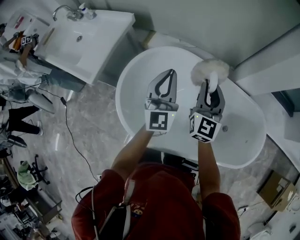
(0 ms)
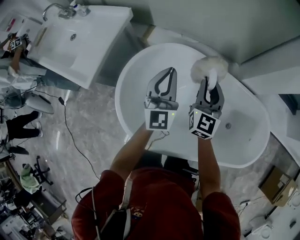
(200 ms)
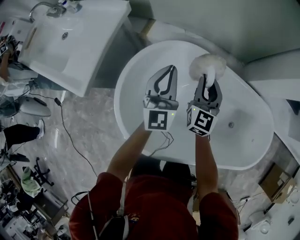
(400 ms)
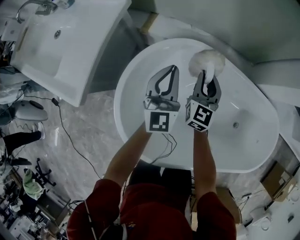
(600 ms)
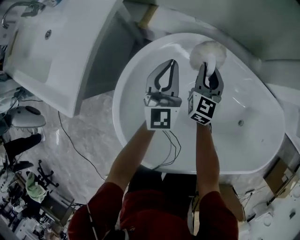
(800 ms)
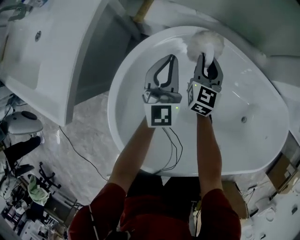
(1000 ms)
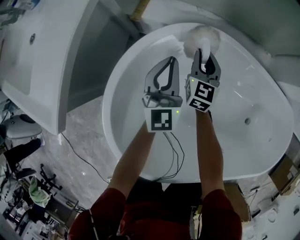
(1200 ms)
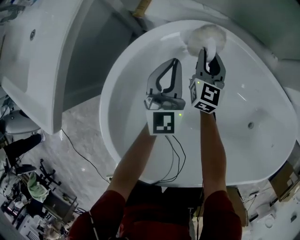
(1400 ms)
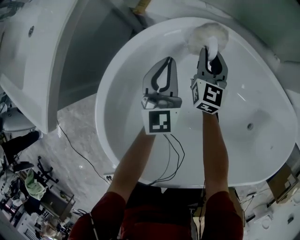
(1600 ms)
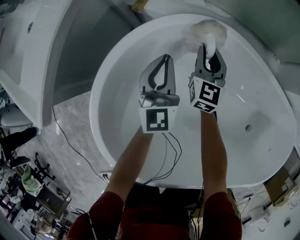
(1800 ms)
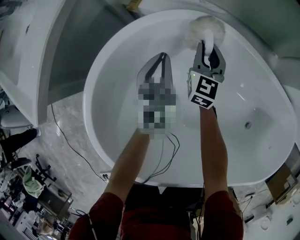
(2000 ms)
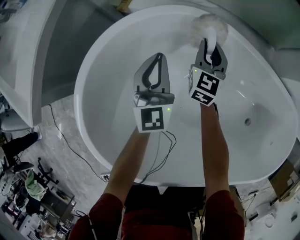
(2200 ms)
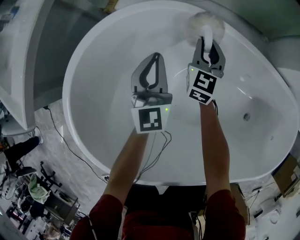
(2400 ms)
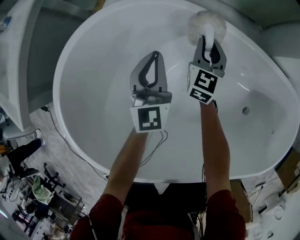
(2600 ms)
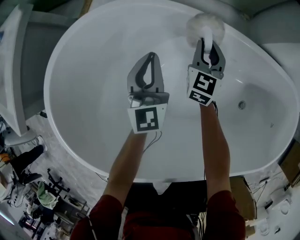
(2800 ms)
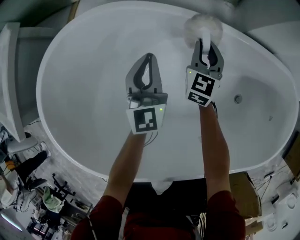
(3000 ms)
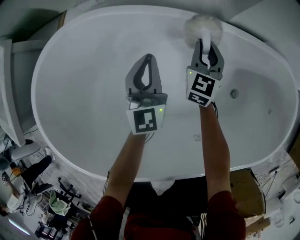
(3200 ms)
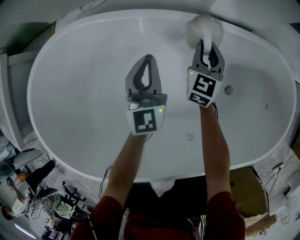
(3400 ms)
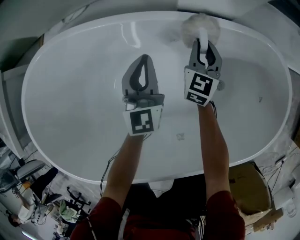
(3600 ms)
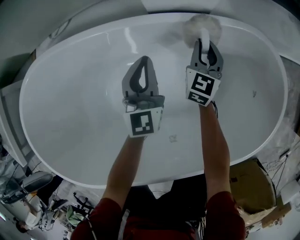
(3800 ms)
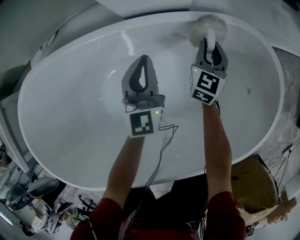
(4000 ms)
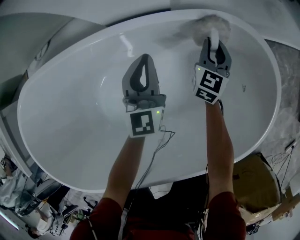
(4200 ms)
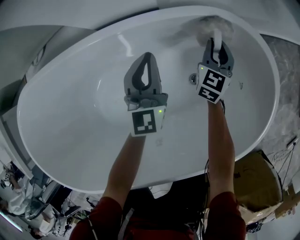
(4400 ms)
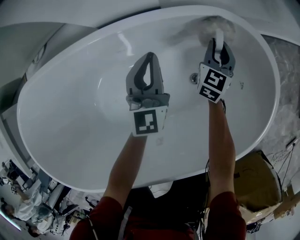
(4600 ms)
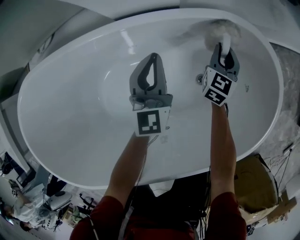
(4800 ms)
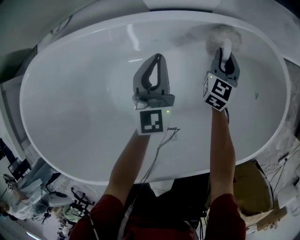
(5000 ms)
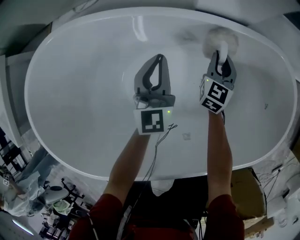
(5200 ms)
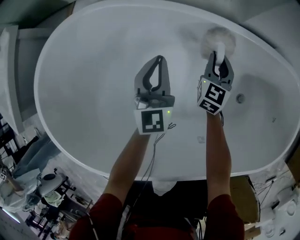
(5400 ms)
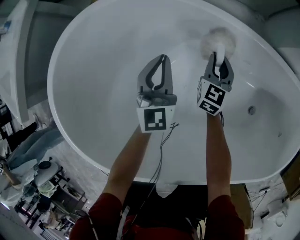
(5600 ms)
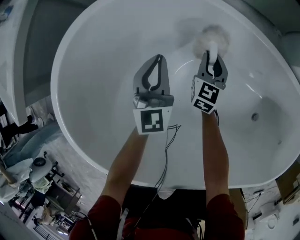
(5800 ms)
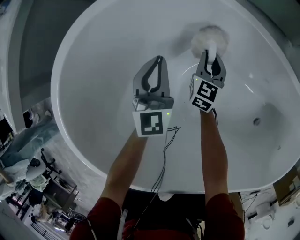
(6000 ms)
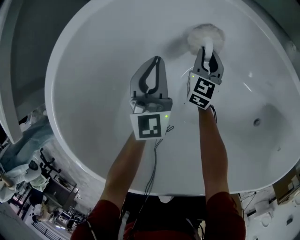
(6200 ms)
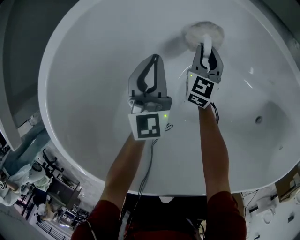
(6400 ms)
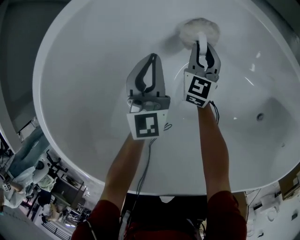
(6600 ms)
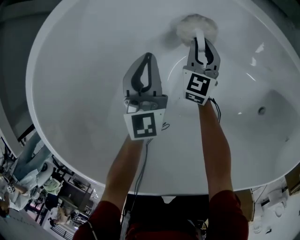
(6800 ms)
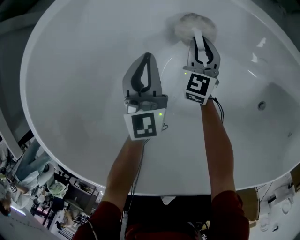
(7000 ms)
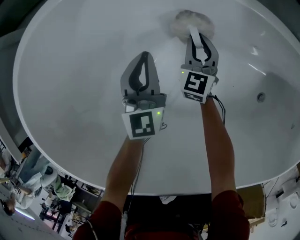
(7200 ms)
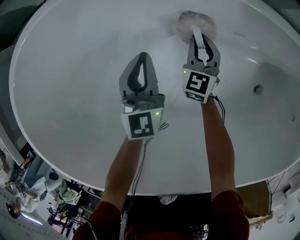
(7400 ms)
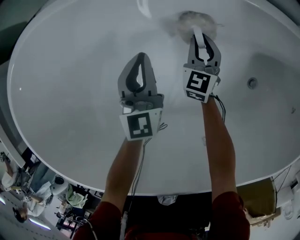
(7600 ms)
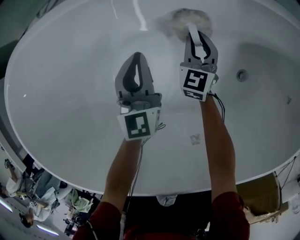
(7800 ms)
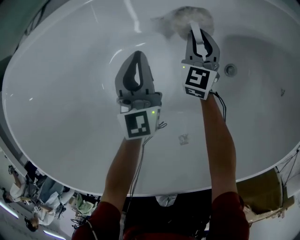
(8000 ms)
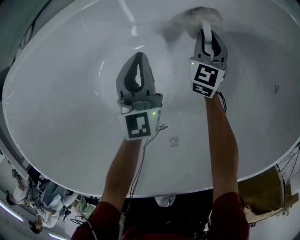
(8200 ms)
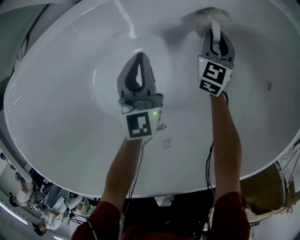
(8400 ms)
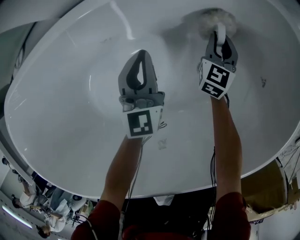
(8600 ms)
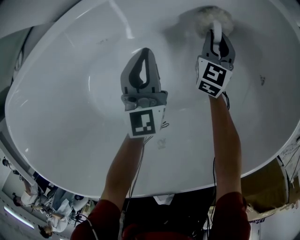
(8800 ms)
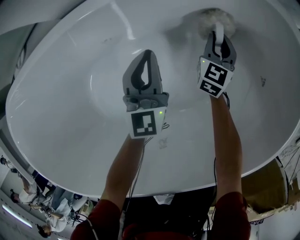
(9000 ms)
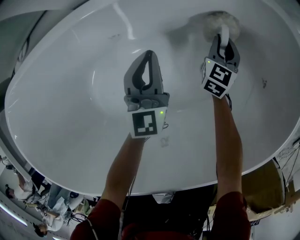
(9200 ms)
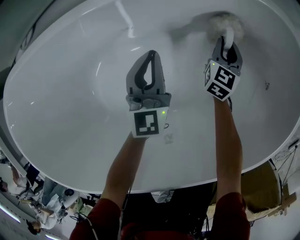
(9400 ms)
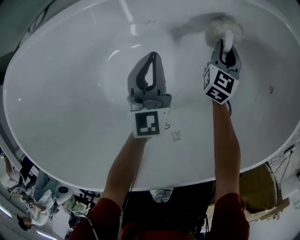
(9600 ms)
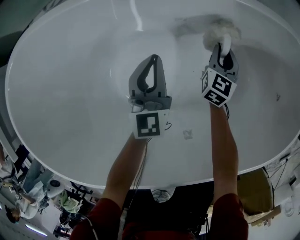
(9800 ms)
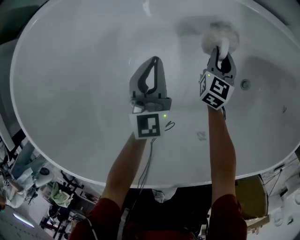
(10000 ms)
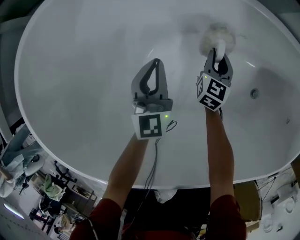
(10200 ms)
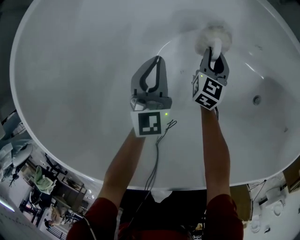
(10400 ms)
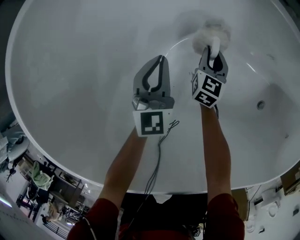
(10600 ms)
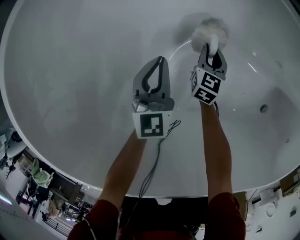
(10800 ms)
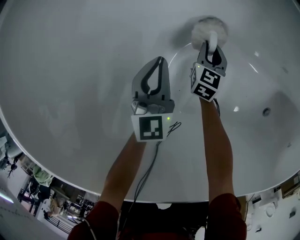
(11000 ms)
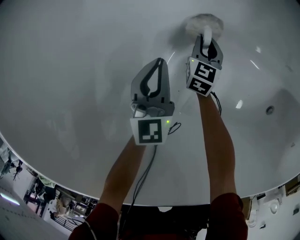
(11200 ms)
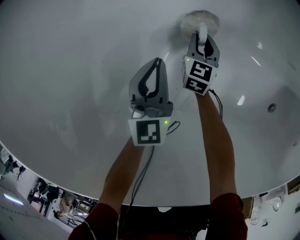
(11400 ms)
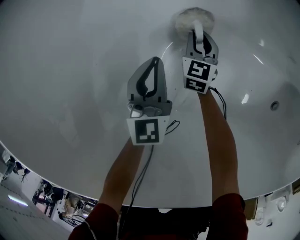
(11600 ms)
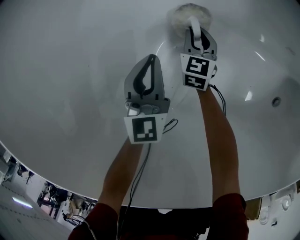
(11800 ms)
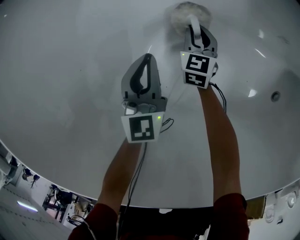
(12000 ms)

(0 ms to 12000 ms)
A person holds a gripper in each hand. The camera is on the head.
0 ms - 1600 ms: Both grippers move downward and forward, about 50 cm.
1600 ms - 3000 ms: The two grippers go approximately 30 cm to the right.
3000 ms - 4400 ms: The two grippers travel together, to the right, approximately 50 cm. The right gripper turns by roughly 20 degrees. Meanwhile the left gripper rotates some 20 degrees.
4400 ms - 6000 ms: Both grippers are carried about 70 cm. The left gripper turns by approximately 30 degrees, while the right gripper rotates some 30 degrees.
6000 ms - 7600 ms: The left gripper moves left and right over about 25 cm, changing direction 2 times. The right gripper swings left and right, approximately 30 cm each way, with 2 reversals.
7600 ms - 9000 ms: Both grippers move to the right, about 35 cm. The right gripper rotates some 30 degrees.
9000 ms - 10400 ms: The pair of grippers is taken approximately 60 cm. The right gripper changes its angle by about 30 degrees; the left gripper turns by about 30 degrees.
10400 ms - 12000 ms: The grippers both shift downward by roughly 10 cm.

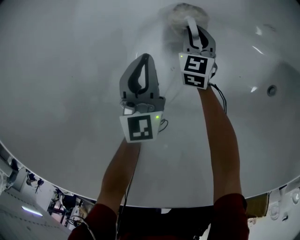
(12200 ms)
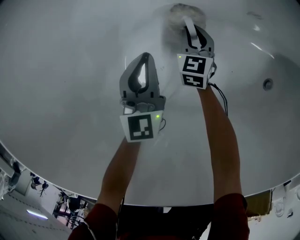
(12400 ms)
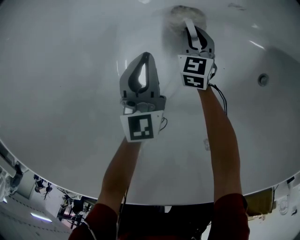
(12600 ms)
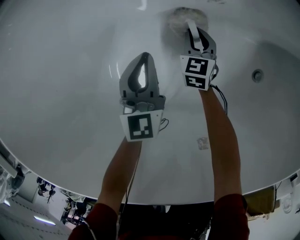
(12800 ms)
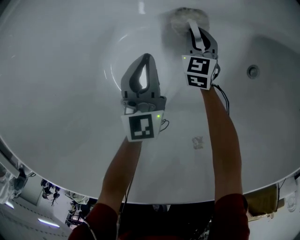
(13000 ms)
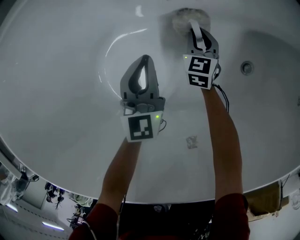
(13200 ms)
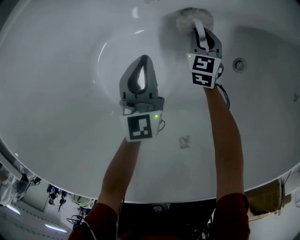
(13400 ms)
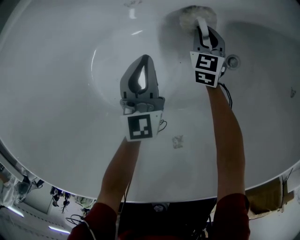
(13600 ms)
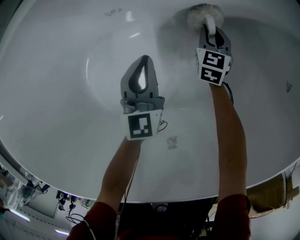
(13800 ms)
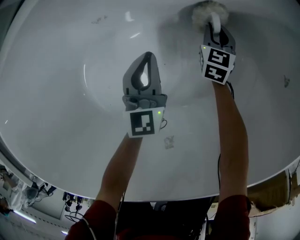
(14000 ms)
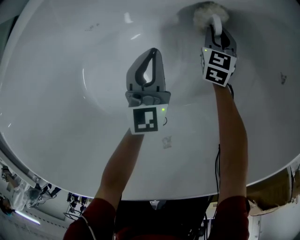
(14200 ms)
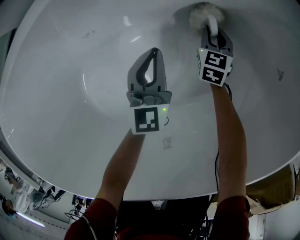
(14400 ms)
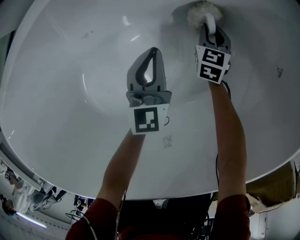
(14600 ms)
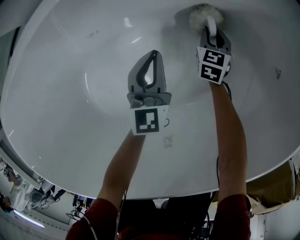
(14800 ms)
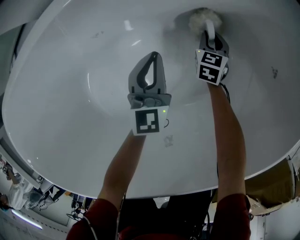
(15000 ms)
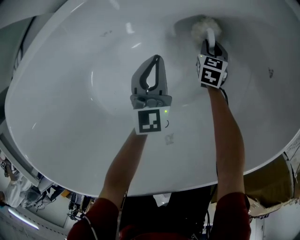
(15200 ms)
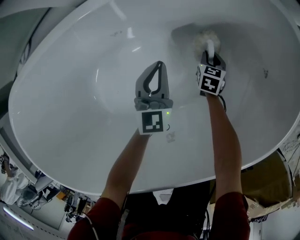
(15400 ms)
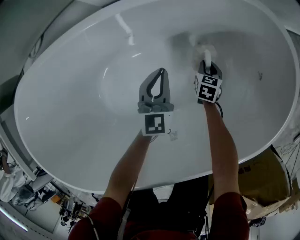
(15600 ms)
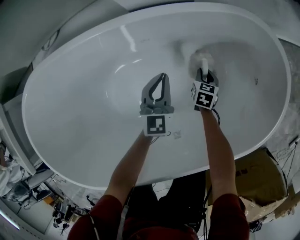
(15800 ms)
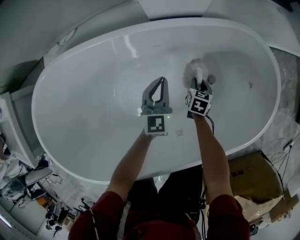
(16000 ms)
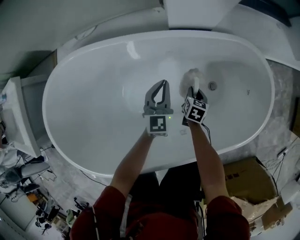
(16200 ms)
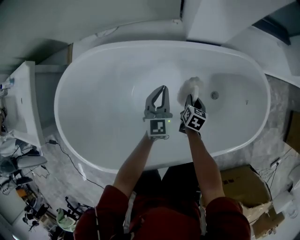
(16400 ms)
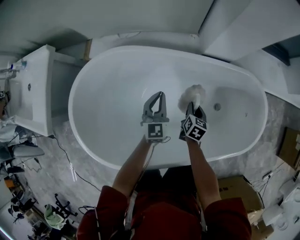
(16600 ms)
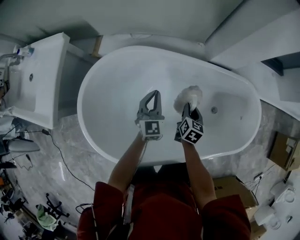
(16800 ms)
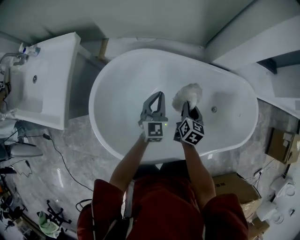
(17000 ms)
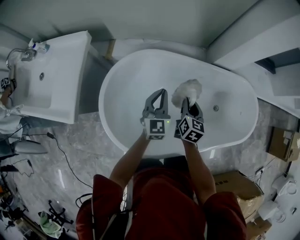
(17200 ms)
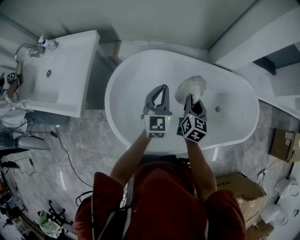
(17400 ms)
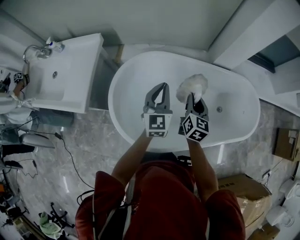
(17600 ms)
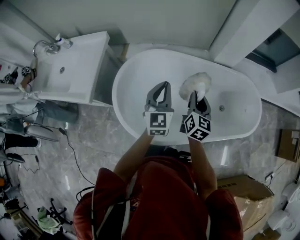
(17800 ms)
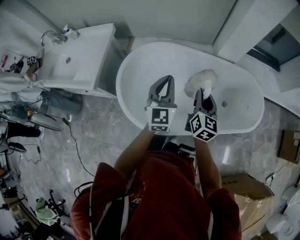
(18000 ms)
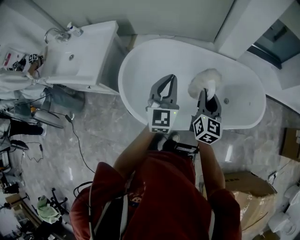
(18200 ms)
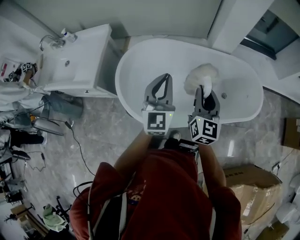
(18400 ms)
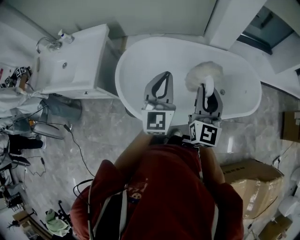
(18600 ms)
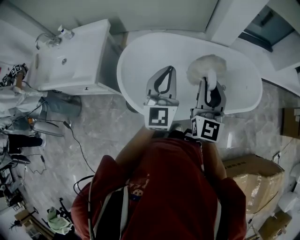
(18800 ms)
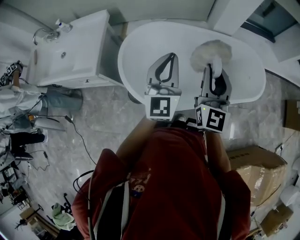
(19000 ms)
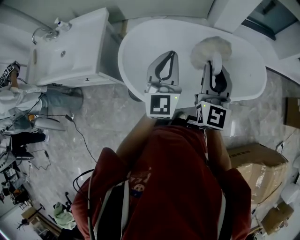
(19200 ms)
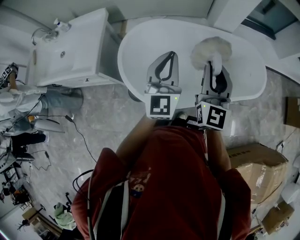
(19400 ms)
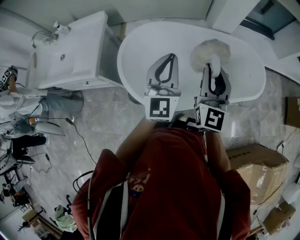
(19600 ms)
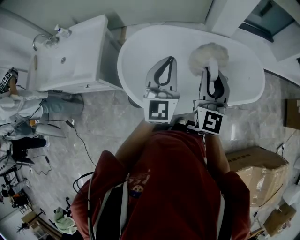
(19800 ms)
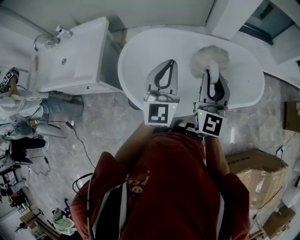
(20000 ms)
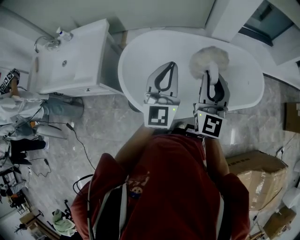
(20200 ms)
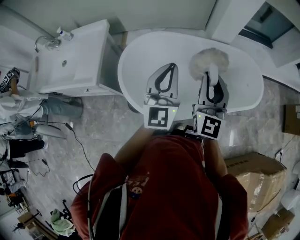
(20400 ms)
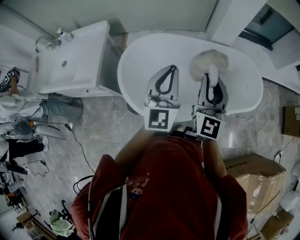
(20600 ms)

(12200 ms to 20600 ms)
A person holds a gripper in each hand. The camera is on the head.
12200 ms - 13600 ms: The right gripper moves about 20 cm to the left and comes back. The left gripper reaches some 20 cm to the left, then returns.
13600 ms - 15000 ms: The left gripper is displaced to the right and forward by about 15 cm, while the right gripper moves to the right, some 15 cm.
15000 ms - 16400 ms: The right gripper shifts some 40 cm upward, to the left and backward; the left gripper shifts roughly 35 cm upward and to the left.
16400 ms - 17800 ms: The left gripper shifts roughly 50 cm upward, to the left and backward. Meanwhile the right gripper moves upward and to the left, some 50 cm, and tilts its fingers some 40 degrees upward.
17800 ms - 19200 ms: The right gripper shifts about 20 cm upward and backward, and rotates about 30 degrees. The left gripper travels backward and upward by roughly 15 cm.
19200 ms - 20600 ms: The grippers stay close to where they were, moving slightly.

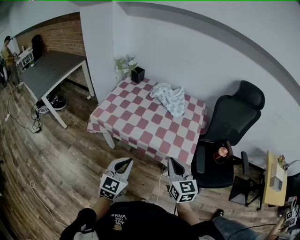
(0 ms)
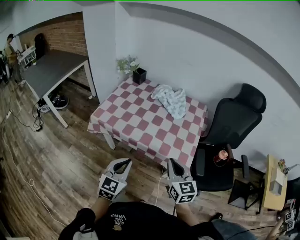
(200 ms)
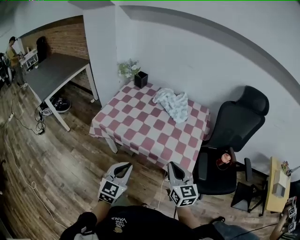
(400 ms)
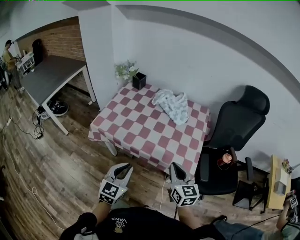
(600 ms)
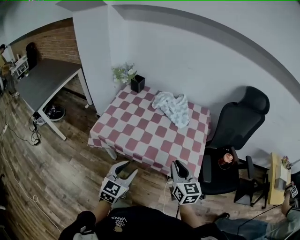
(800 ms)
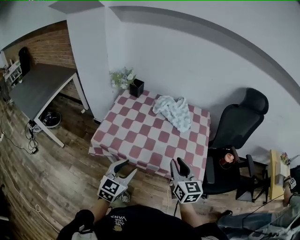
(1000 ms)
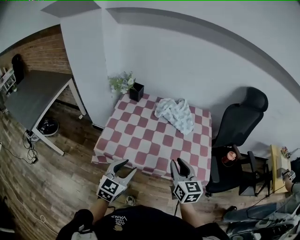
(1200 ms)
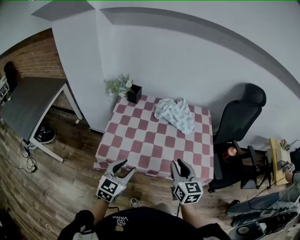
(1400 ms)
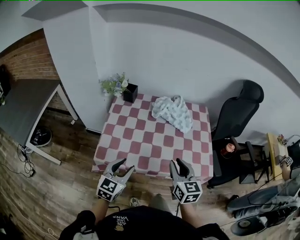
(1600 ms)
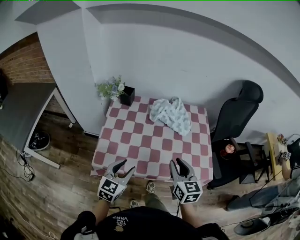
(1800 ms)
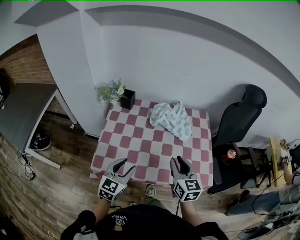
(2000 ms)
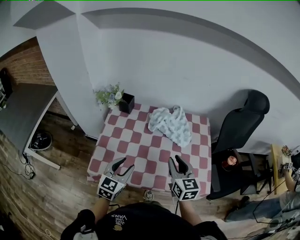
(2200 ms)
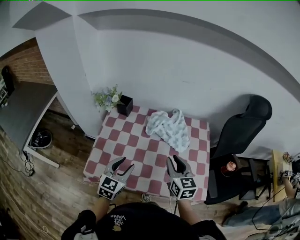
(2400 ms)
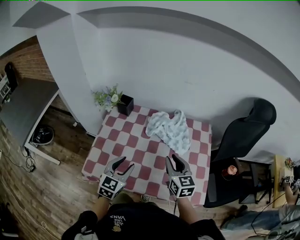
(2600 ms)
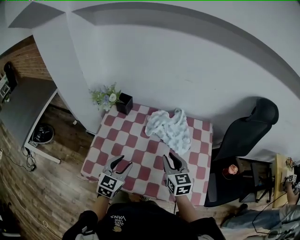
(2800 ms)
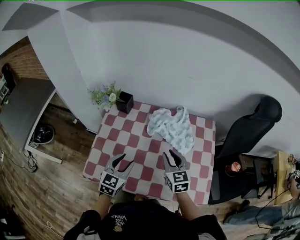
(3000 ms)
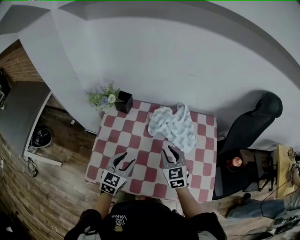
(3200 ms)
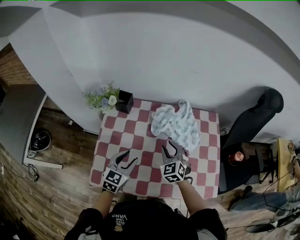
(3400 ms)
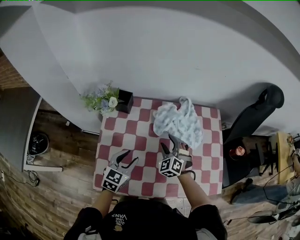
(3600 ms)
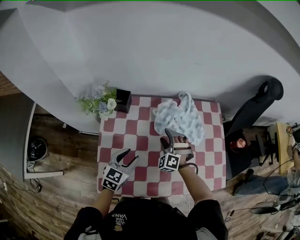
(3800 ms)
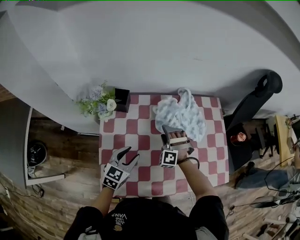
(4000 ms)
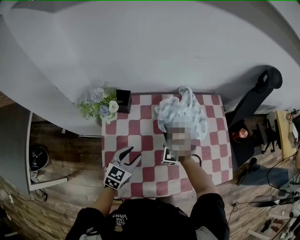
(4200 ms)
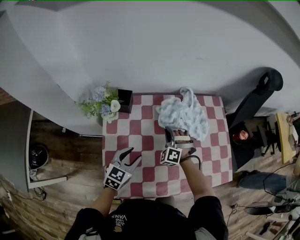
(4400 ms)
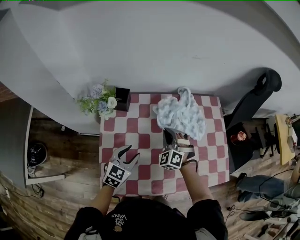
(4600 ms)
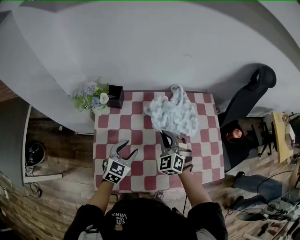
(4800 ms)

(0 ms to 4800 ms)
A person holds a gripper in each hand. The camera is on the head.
0 ms - 1600 ms: The grippers both shift forward and to the left by about 25 cm. The left gripper swivels approximately 20 degrees, and opens up, while the right gripper changes its angle by roughly 20 degrees, and opens its fingers.
1600 ms - 3200 ms: The grippers both shift forward by roughly 20 cm. The right gripper swivels some 20 degrees.
3200 ms - 4800 ms: The right gripper reaches roughly 15 cm downward, then returns, rotates approximately 30 degrees, and opens, then closes once more, while the left gripper changes place by roughly 10 cm.
